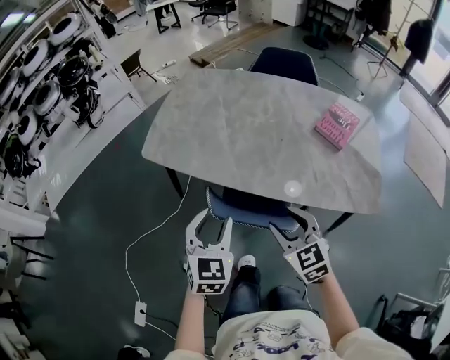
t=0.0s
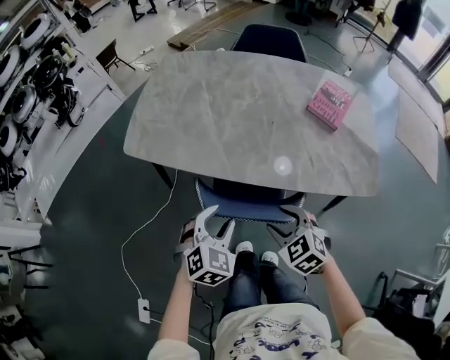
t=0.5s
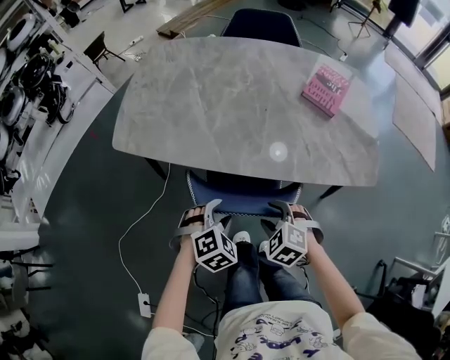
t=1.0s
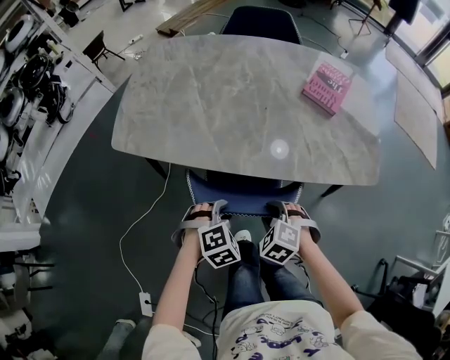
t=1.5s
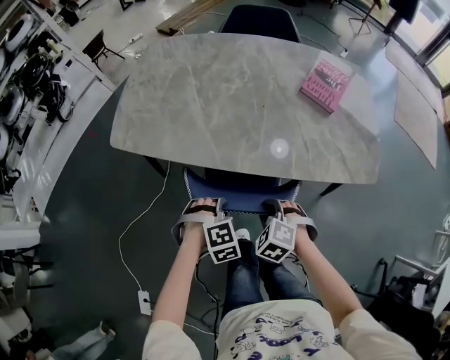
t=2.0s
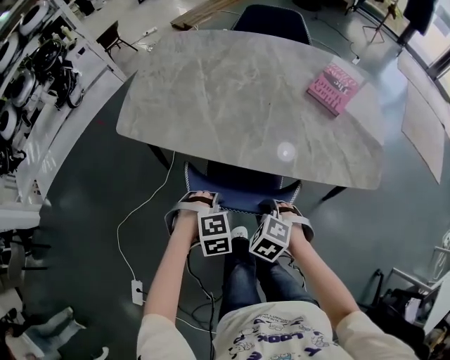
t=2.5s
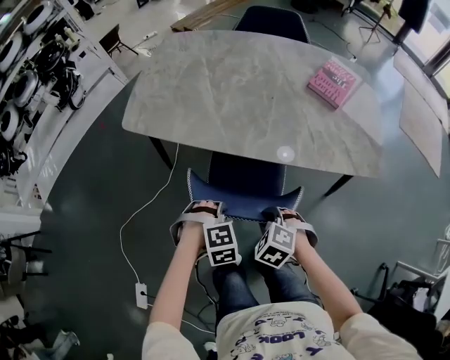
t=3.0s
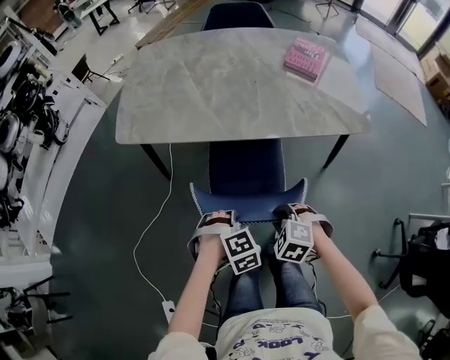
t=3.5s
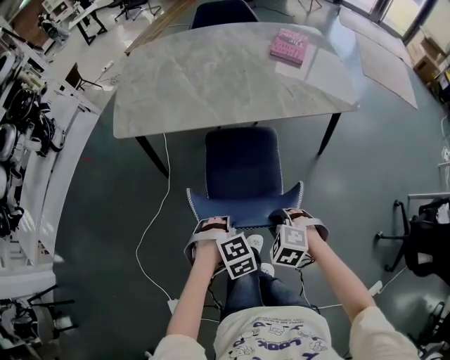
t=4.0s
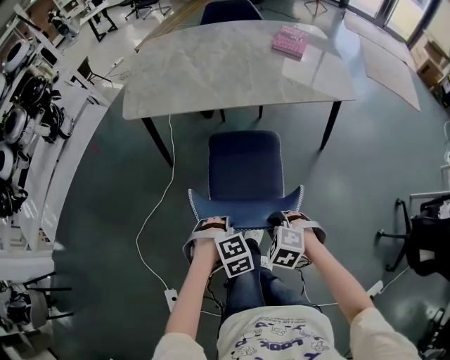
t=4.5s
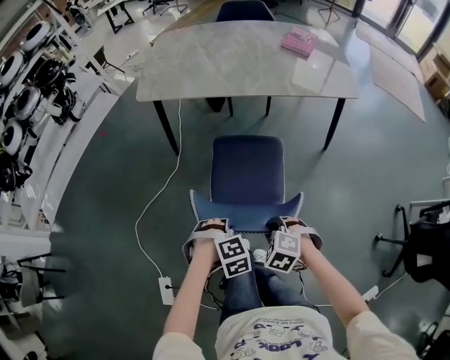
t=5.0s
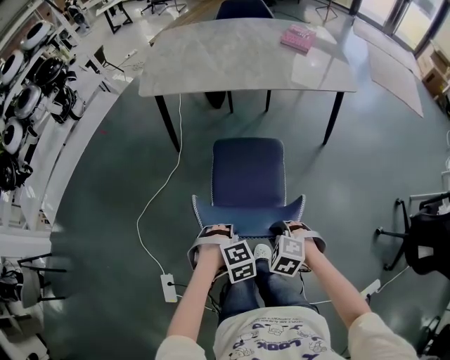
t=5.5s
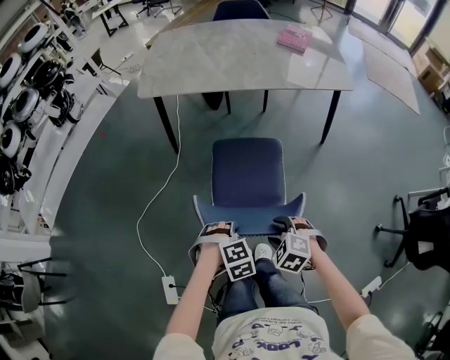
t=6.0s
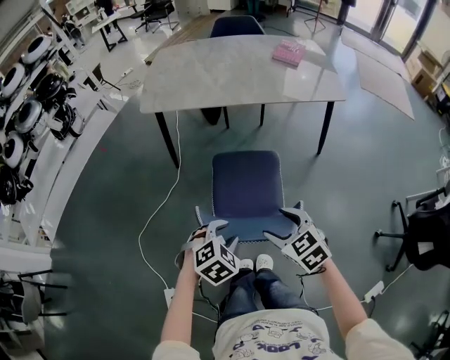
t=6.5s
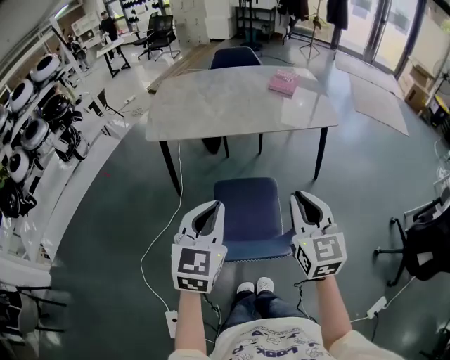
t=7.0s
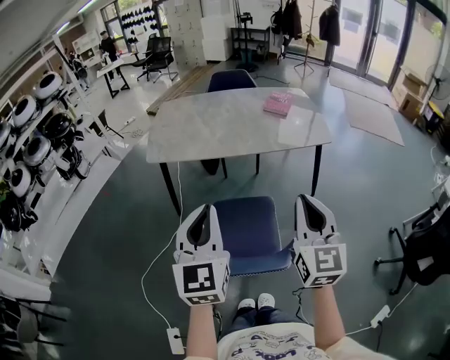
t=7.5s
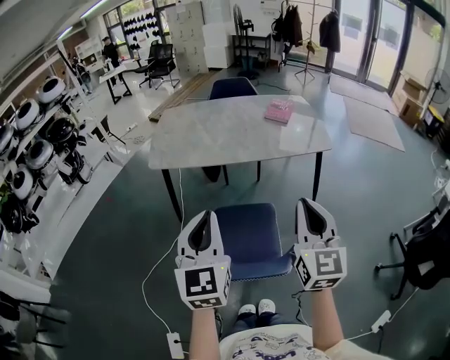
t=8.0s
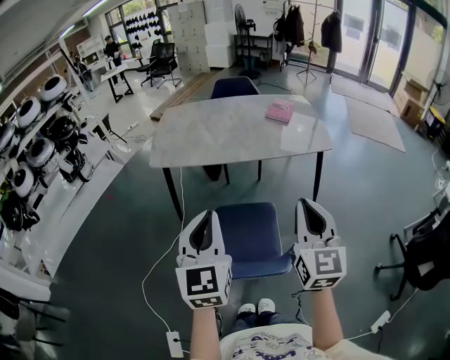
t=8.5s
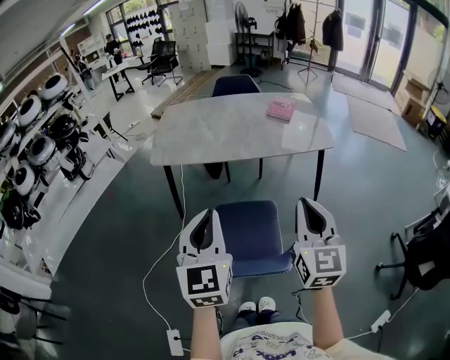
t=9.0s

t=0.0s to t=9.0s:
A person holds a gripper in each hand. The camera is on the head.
t=0.0s to t=2.0s: The grippers both shift downward by approximately 20 cm. The right gripper tilts its fingers approximately 40 degrees downward, and closes, while the left gripper tips its fingers downward by about 40 degrees, and closes its fingers.
t=2.0s to t=4.5s: The right gripper changes place by some 40 cm; the left gripper changes place by about 40 cm.
t=4.5s to t=7.0s: Both grippers move upward, about 30 cm. The right gripper tilts its fingers roughly 60 degrees upward, and opens and closes again. The left gripper angles its fingers upward, by roughly 60 degrees, and opens, then closes again.
t=7.0s to t=9.0s: The grippers both shift upward by about 10 cm.

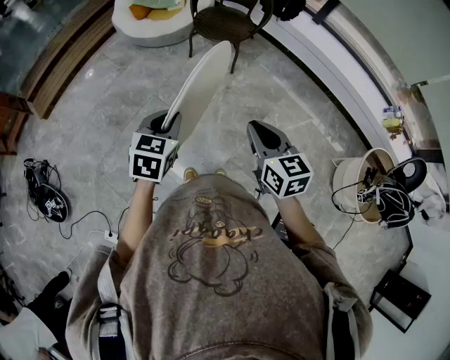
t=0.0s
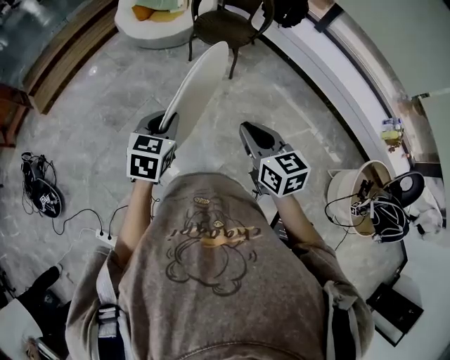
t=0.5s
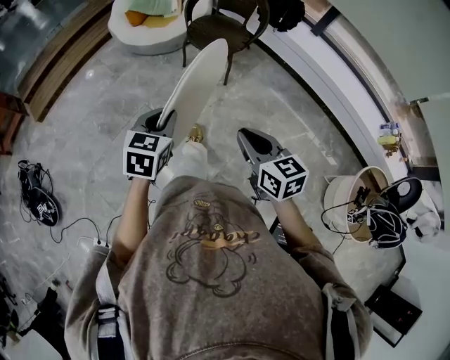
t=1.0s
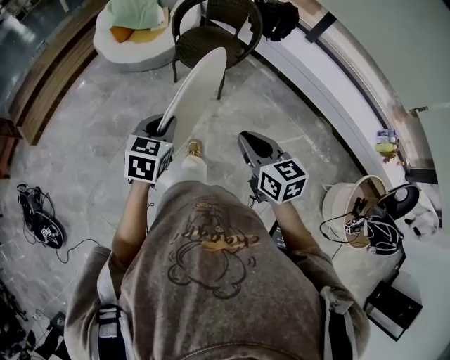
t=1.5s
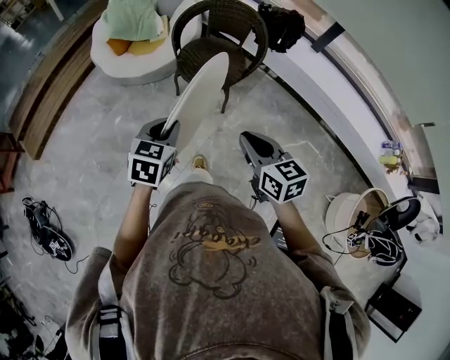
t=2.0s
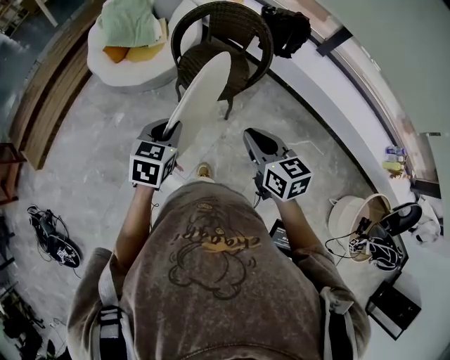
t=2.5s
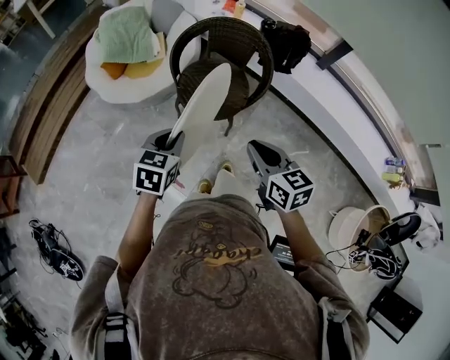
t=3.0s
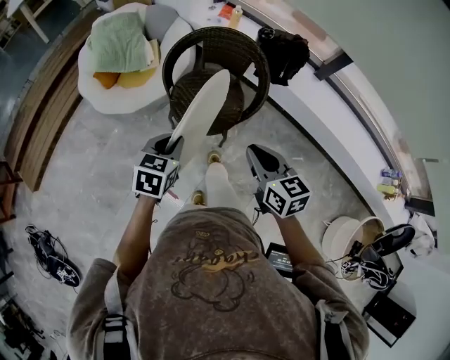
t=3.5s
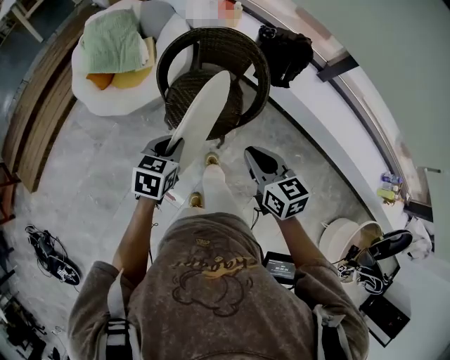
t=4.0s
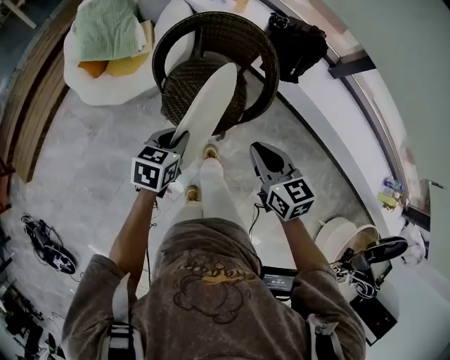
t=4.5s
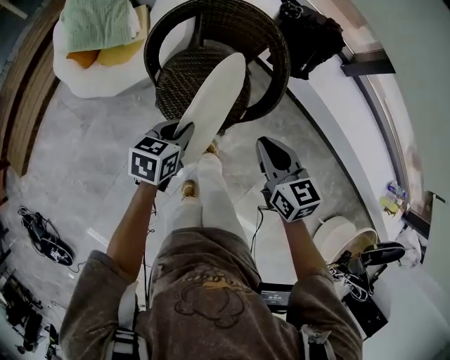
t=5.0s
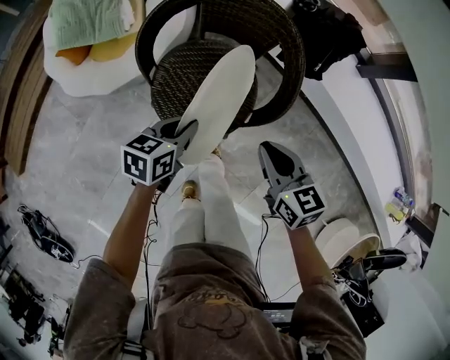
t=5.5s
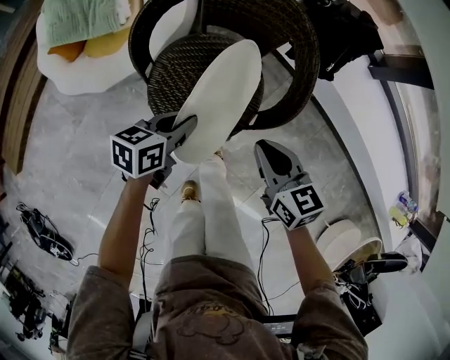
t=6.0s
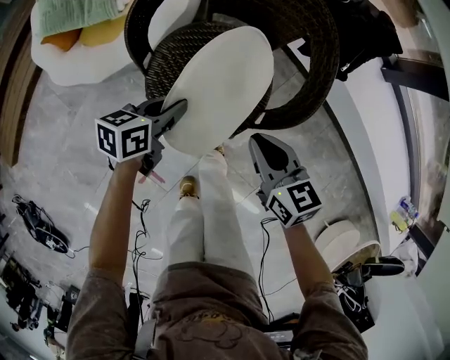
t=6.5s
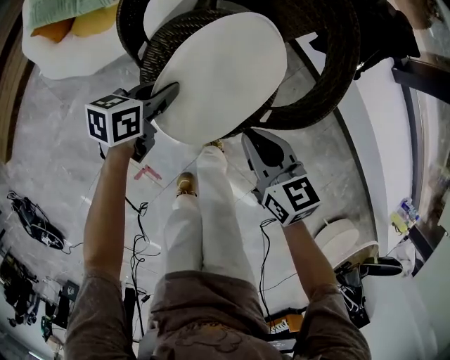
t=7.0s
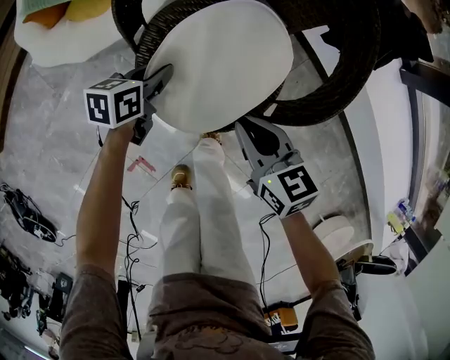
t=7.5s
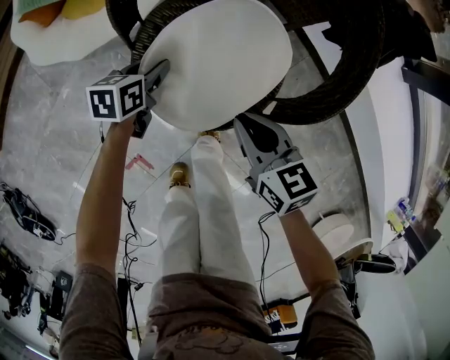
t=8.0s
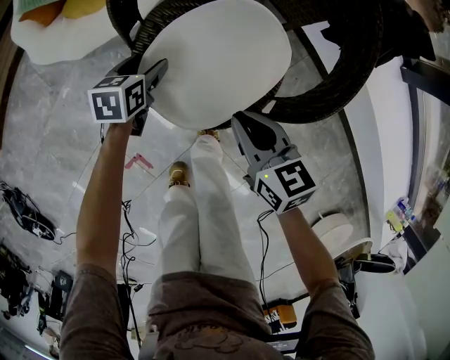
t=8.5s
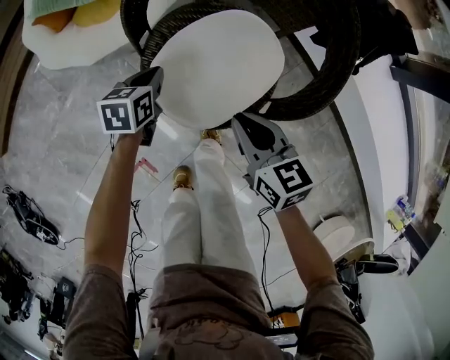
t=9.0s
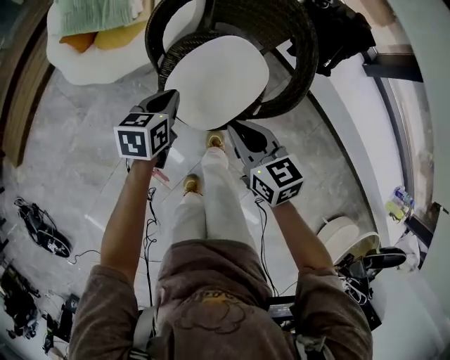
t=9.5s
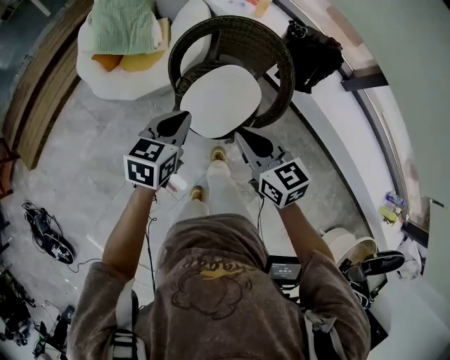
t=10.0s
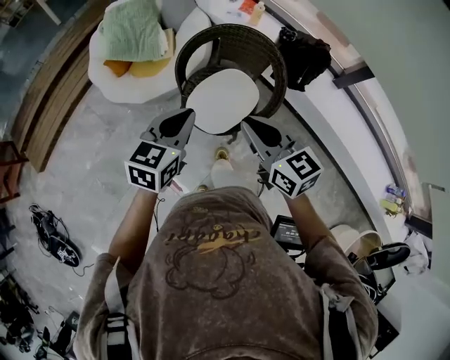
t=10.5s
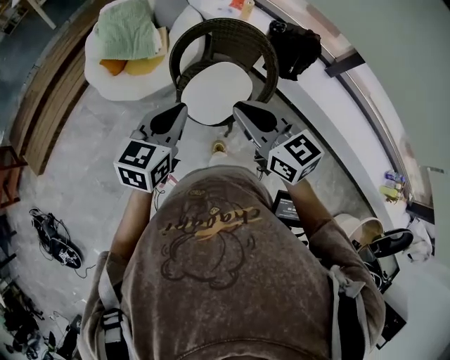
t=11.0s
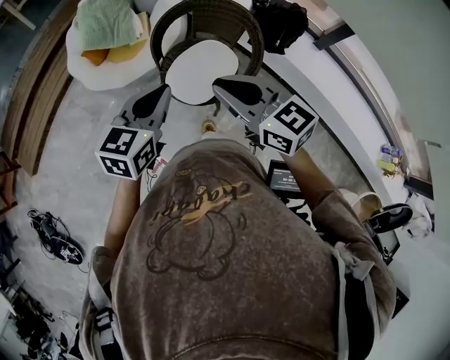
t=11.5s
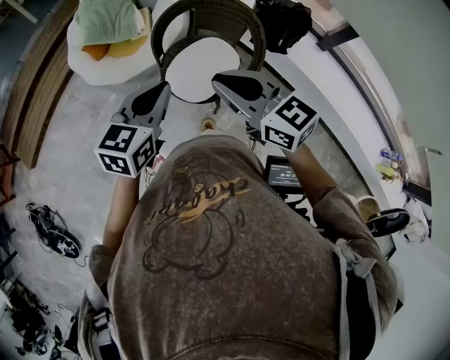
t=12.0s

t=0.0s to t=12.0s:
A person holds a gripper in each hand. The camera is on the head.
t=0.0s to t=2.0s: The grippers both shift forward by roughly 20 cm.
t=2.0s to t=4.0s: Both grippers travel together forward, roughly 15 cm.
t=4.0s to t=6.0s: Both grippers travel together downward and forward, approximately 15 cm. The left gripper changes its angle by some 30 degrees.
t=6.0s to t=8.0s: The left gripper heads downward and to the left, covering about 20 cm, and swivels approximately 20 degrees. The right gripper shifts approximately 10 cm downward and to the left.
t=8.0s to t=10.0s: Both grippers travel together upward, about 25 cm. The left gripper rotates some 30 degrees, and closes.
t=10.0s to t=12.0s: The left gripper travels upward and backward by some 15 cm. Meanwhile the right gripper goes roughly 15 cm upward.

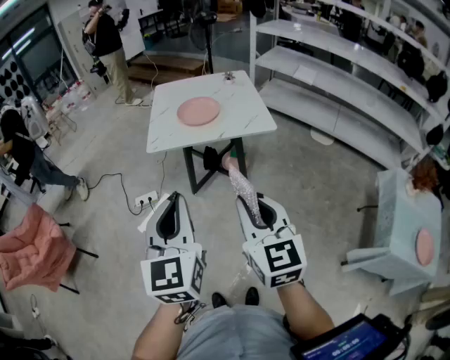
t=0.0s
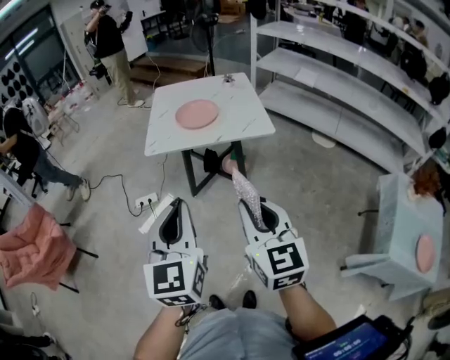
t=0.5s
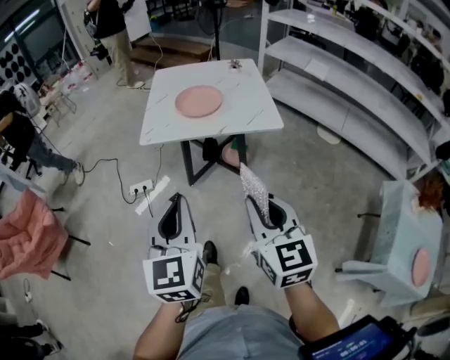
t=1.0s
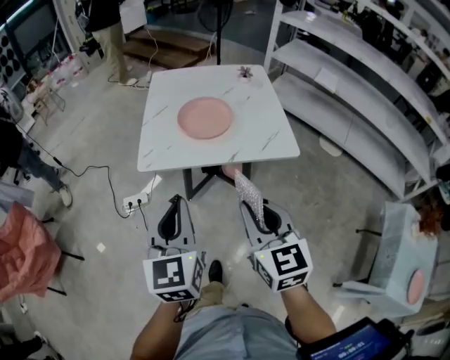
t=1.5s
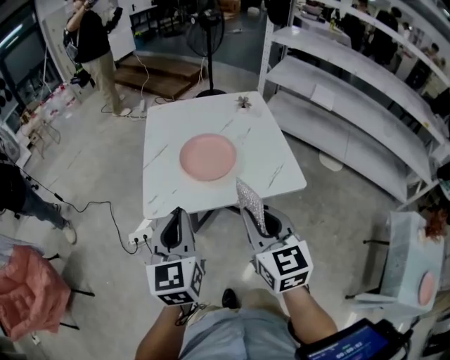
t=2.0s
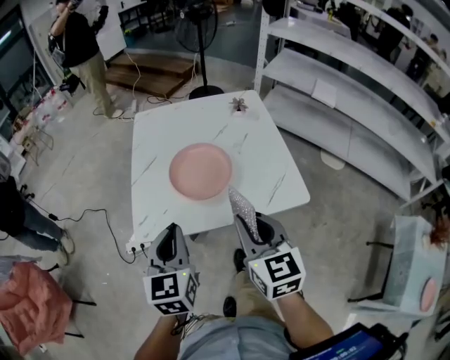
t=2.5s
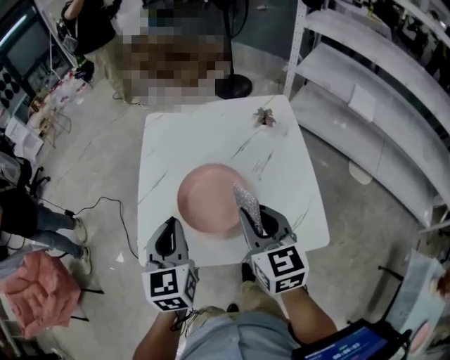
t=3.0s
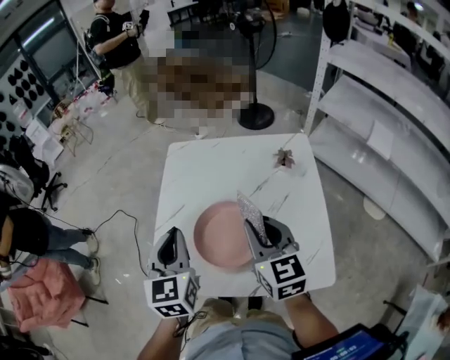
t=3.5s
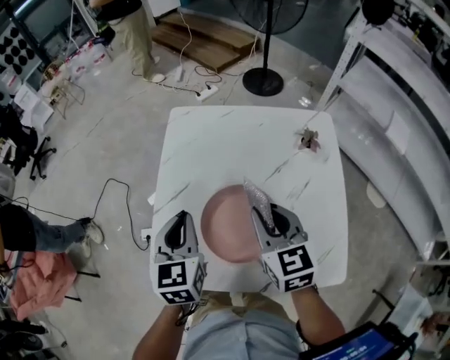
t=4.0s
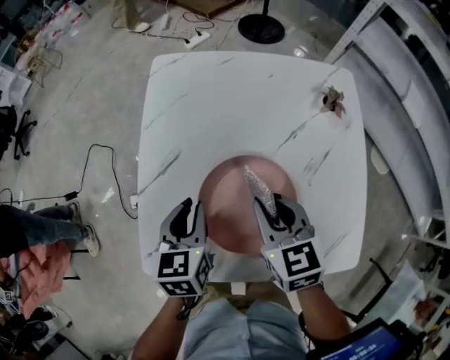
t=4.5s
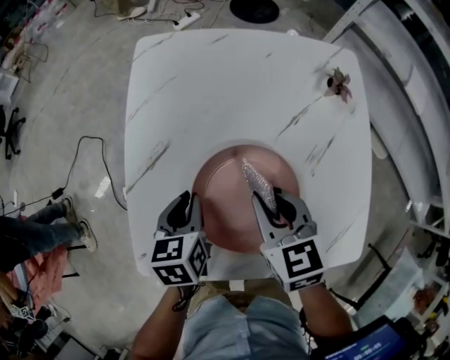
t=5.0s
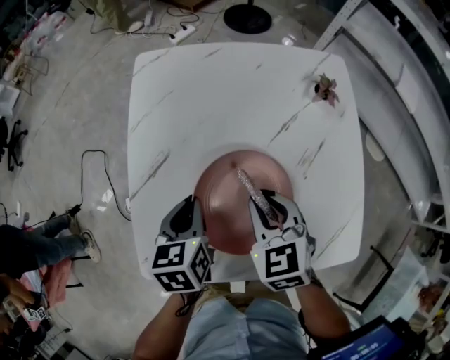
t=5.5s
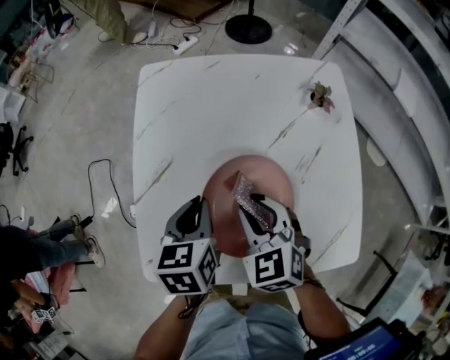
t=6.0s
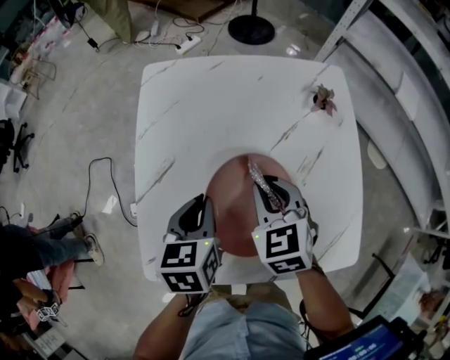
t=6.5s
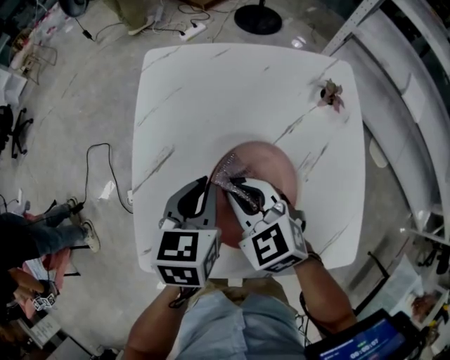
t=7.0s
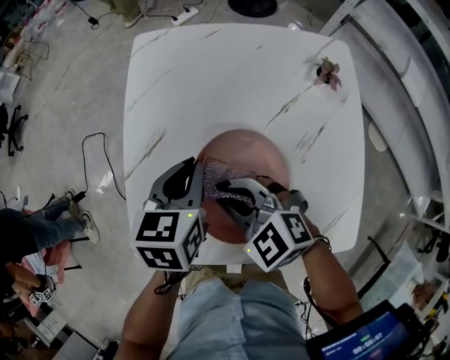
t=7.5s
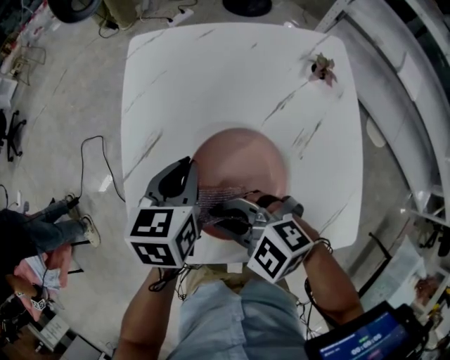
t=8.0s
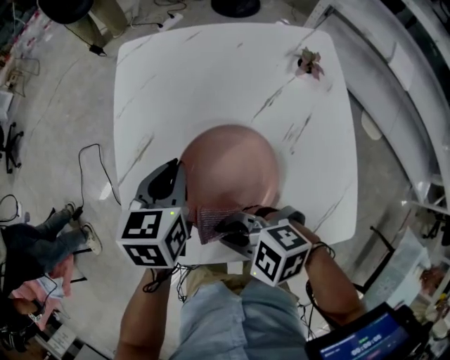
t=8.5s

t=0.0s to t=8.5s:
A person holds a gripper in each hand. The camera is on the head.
t=0.0s to t=2.0s: Both grippers move forward, roughly 35 cm.
t=2.0s to t=4.0s: Both grippers move forward, some 35 cm. The left gripper turns by approximately 20 degrees.
t=4.0s to t=6.5s: Both grippers move downward, approximately 10 cm. The left gripper turns by about 30 degrees; the right gripper changes its angle by approximately 20 degrees.
t=6.5s to t=8.5s: The right gripper shifts by about 20 cm, and changes its angle by some 60 degrees.
